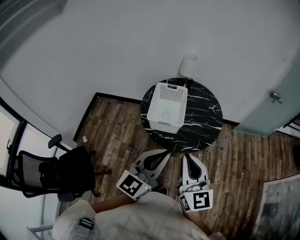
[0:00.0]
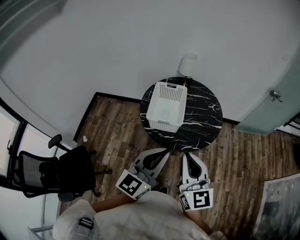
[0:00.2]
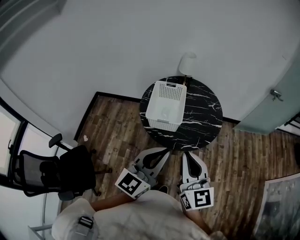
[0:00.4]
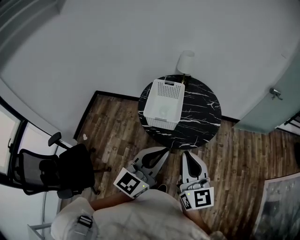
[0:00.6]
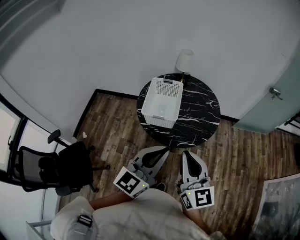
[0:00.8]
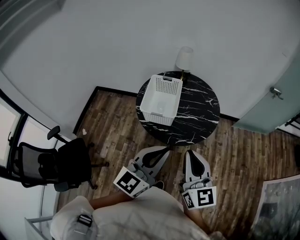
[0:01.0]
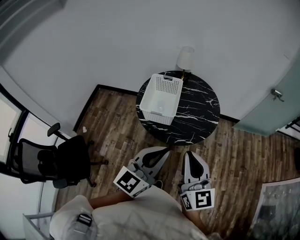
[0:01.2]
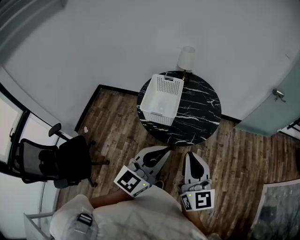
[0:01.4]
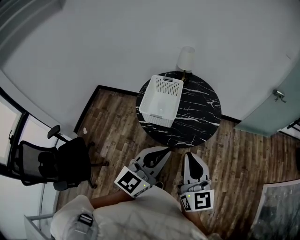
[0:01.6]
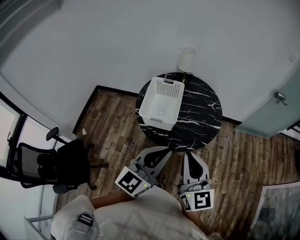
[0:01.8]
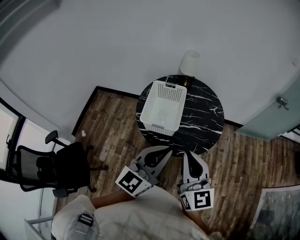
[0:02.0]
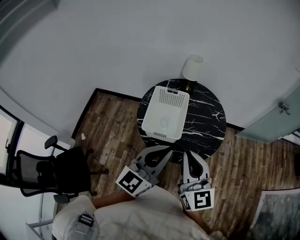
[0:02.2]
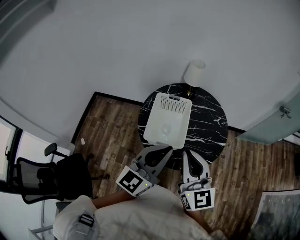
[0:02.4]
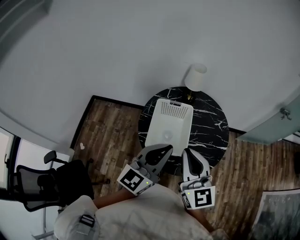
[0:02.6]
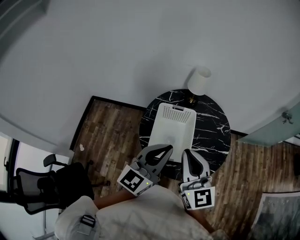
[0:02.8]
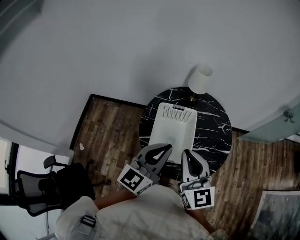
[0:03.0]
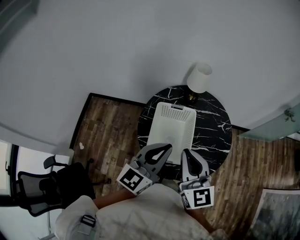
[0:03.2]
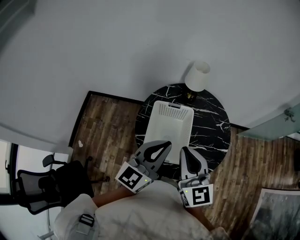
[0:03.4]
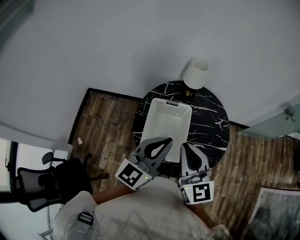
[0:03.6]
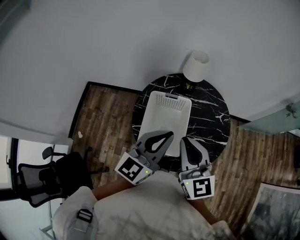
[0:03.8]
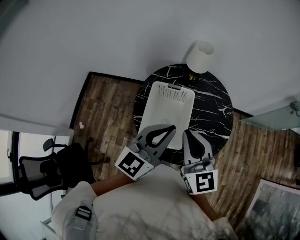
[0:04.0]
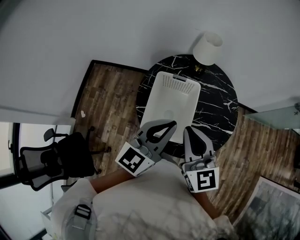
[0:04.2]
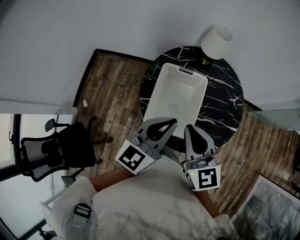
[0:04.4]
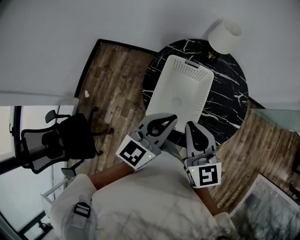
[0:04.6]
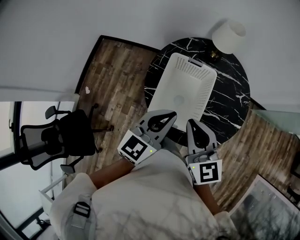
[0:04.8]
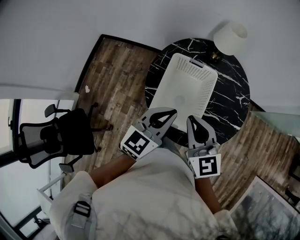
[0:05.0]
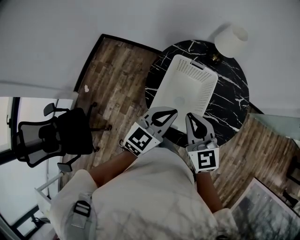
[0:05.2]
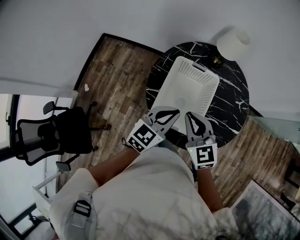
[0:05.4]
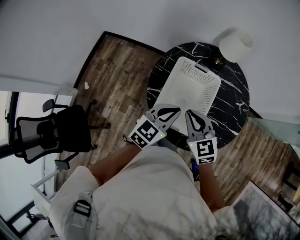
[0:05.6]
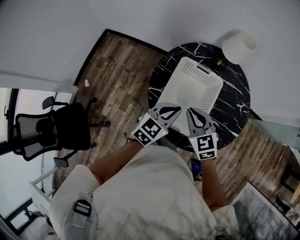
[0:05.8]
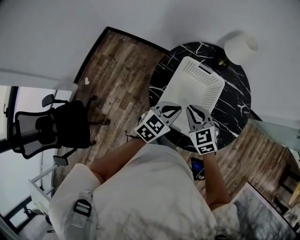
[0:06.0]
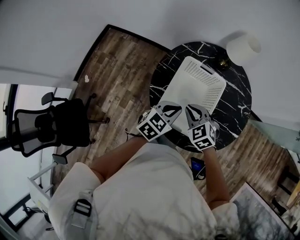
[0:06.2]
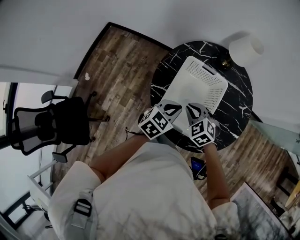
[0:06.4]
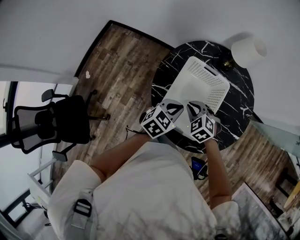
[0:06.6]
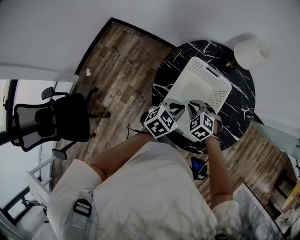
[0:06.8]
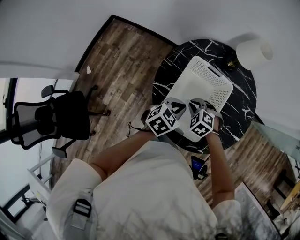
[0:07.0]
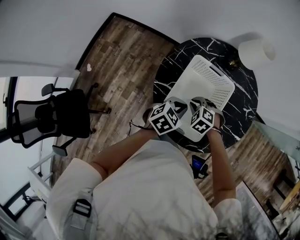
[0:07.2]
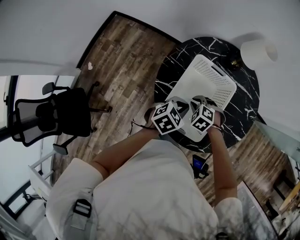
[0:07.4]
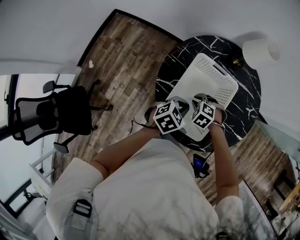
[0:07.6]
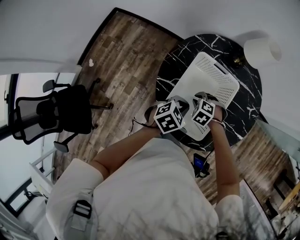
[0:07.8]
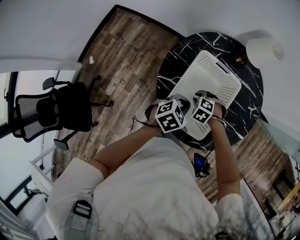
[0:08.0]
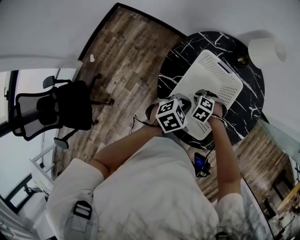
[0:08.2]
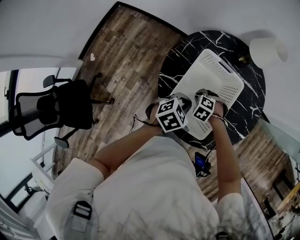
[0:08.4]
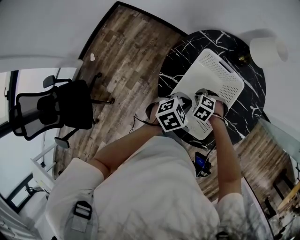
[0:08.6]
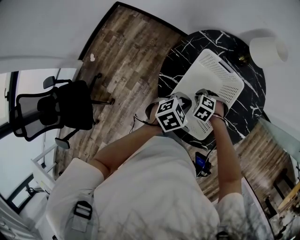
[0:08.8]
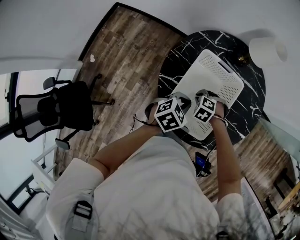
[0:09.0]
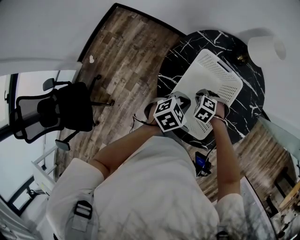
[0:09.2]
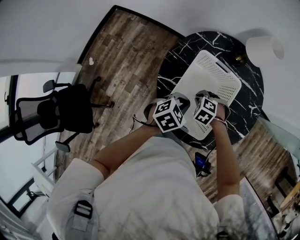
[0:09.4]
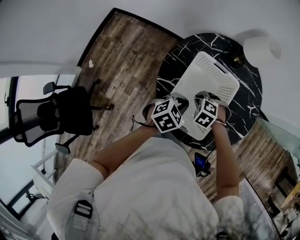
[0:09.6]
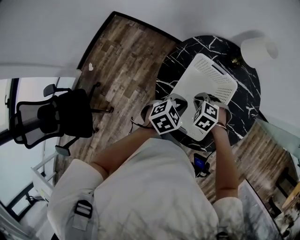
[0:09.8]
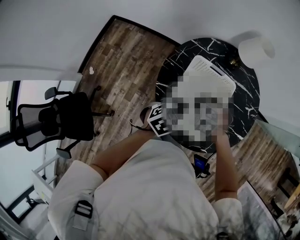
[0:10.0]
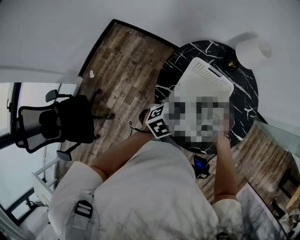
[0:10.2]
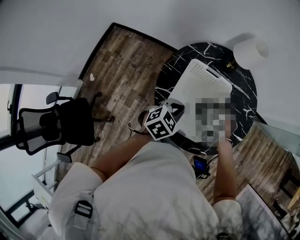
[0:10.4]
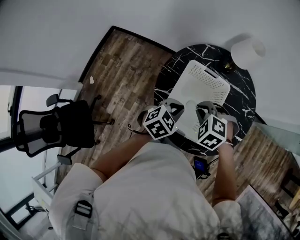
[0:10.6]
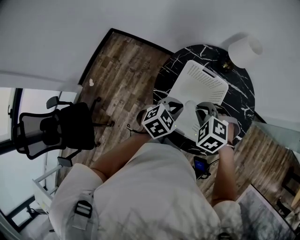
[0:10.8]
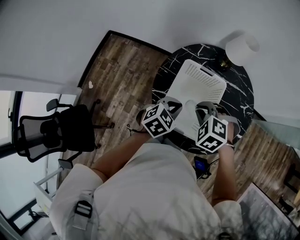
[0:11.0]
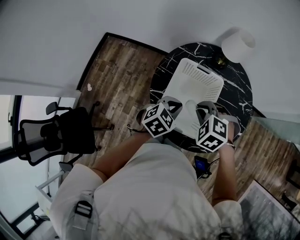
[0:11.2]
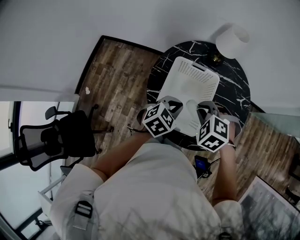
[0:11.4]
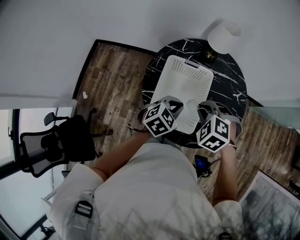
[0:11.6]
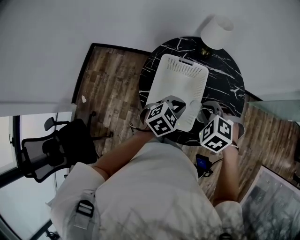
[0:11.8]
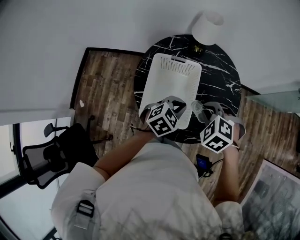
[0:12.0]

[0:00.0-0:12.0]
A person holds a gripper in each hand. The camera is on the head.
0:00.0 to 0:01.6: Both grippers travel together to the right, about 10 cm.
0:01.6 to 0:03.0: Both grippers travel together forward and to the left, approximately 35 cm.
0:03.0 to 0:04.4: The two grippers go roughly 5 cm downward.
0:04.4 to 0:06.0: The two grippers go roughly 20 cm downward. The right gripper rotates some 40 degrees. Meanwhile the left gripper rotates some 30 degrees.
0:06.0 to 0:07.6: The left gripper goes some 10 cm downward, and rotates approximately 20 degrees, while the right gripper shifts some 20 cm downward, and points its fingers approximately 40 degrees further downward.
0:07.6 to 0:09.0: The grippers move only a little.
0:09.0 to 0:10.4: The left gripper goes about 5 cm upward, while the right gripper moves upward, about 20 cm.
0:10.4 to 0:12.0: The left gripper is displaced to the right by about 10 cm. Meanwhile the right gripper is displaced to the right and upward by approximately 15 cm.

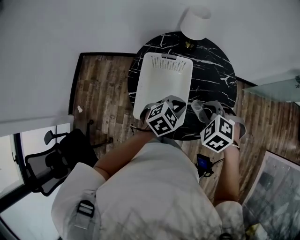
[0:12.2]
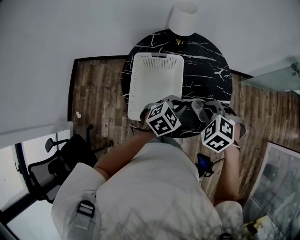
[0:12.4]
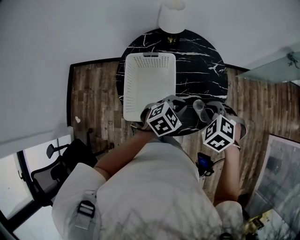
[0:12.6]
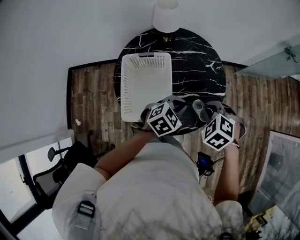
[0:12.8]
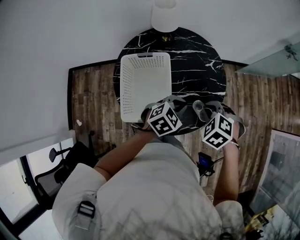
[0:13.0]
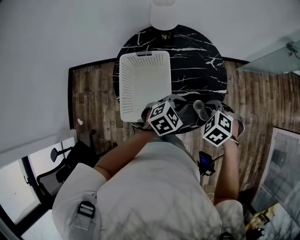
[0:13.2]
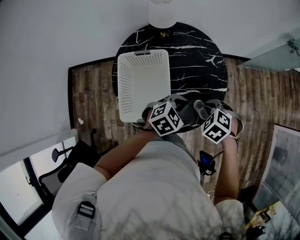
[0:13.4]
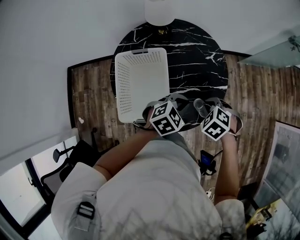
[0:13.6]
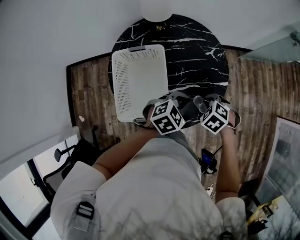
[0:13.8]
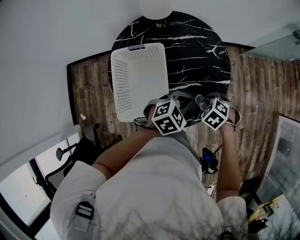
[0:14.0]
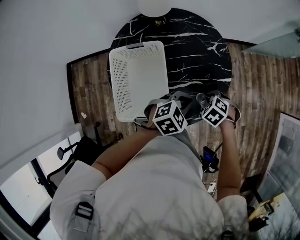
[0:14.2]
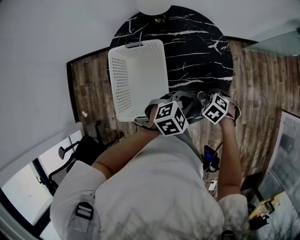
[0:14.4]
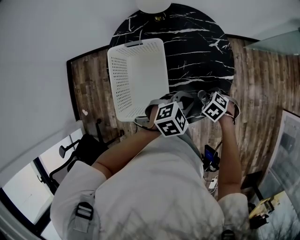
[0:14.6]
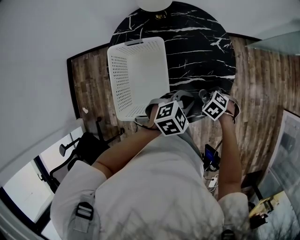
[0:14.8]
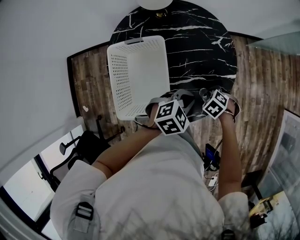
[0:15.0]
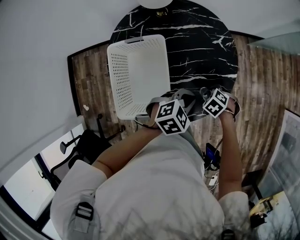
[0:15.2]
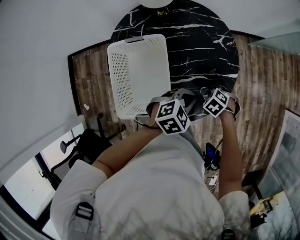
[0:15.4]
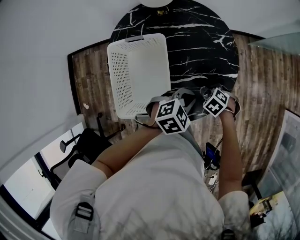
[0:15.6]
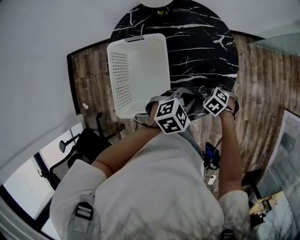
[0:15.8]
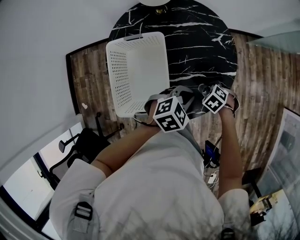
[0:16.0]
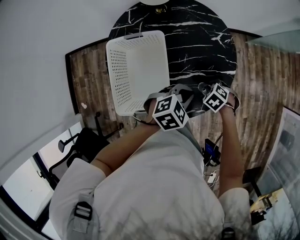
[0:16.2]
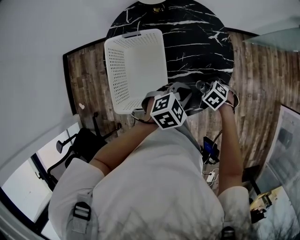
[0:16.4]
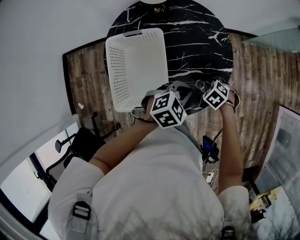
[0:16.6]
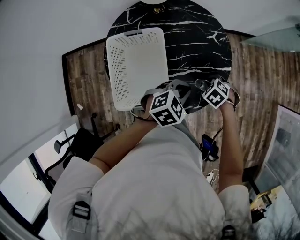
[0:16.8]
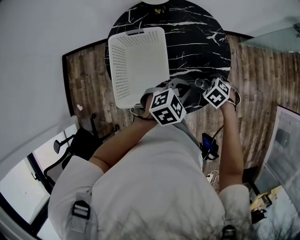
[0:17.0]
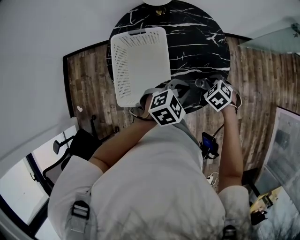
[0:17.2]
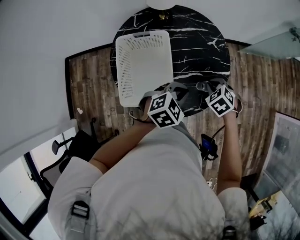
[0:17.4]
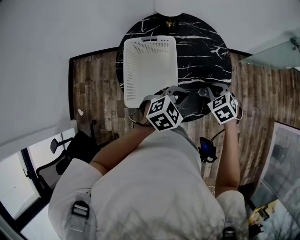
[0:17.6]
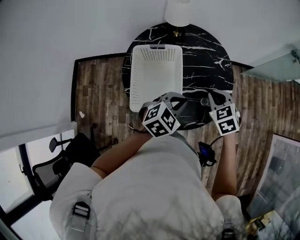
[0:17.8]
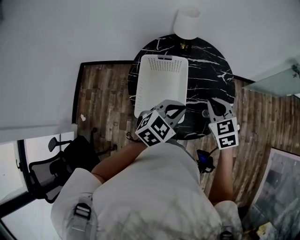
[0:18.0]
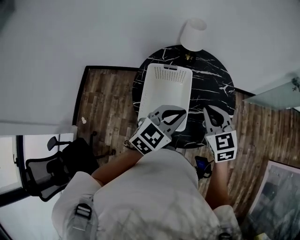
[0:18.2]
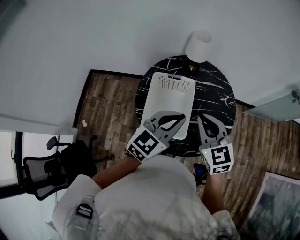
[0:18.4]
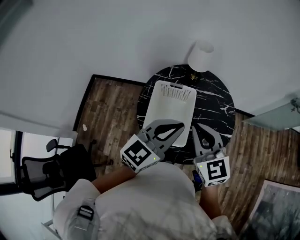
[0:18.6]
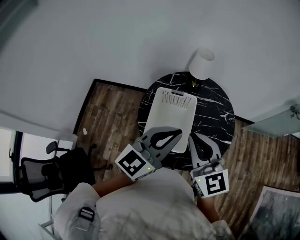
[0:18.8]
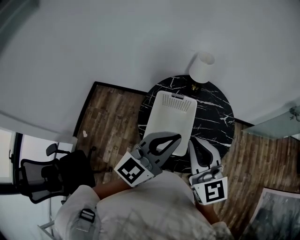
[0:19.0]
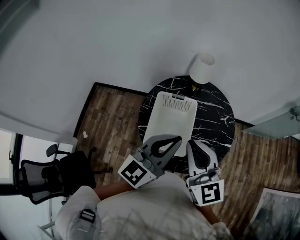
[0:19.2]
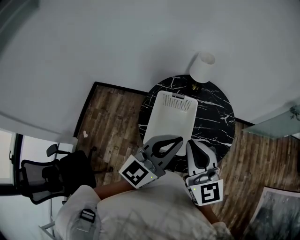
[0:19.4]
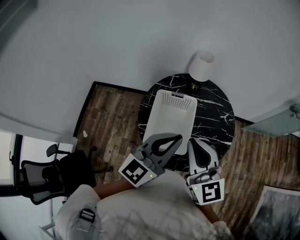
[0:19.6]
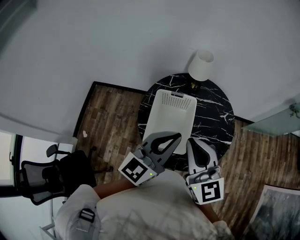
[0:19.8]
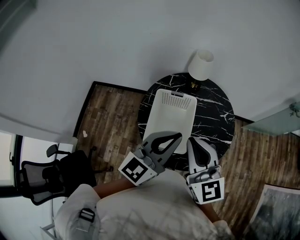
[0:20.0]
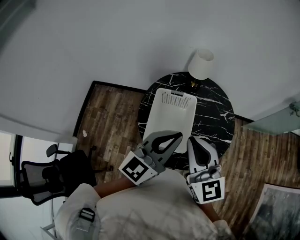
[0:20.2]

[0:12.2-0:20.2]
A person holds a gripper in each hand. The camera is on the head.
0:12.2 to 0:13.8: The left gripper ends up roughly 10 cm from where it was. The right gripper is displaced downward by some 15 cm, and turns by approximately 20 degrees.
0:13.8 to 0:15.4: The right gripper travels downward by some 15 cm.
0:15.4 to 0:17.0: The right gripper heads upward, covering some 5 cm.
0:17.0 to 0:18.6: The grippers both shift upward by about 30 cm. The right gripper points its fingers approximately 70 degrees further upward, while the left gripper angles its fingers upward, by about 40 degrees.
0:18.6 to 0:20.2: The right gripper moves roughly 5 cm.

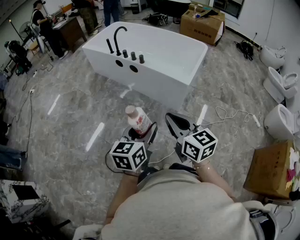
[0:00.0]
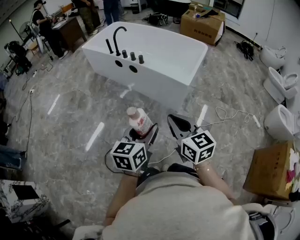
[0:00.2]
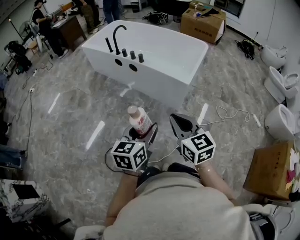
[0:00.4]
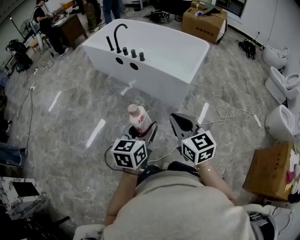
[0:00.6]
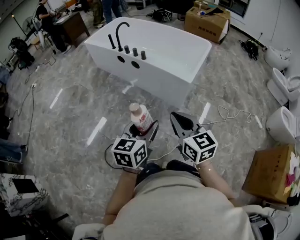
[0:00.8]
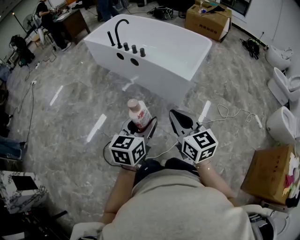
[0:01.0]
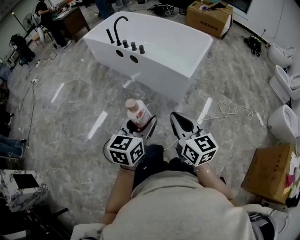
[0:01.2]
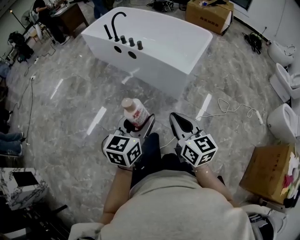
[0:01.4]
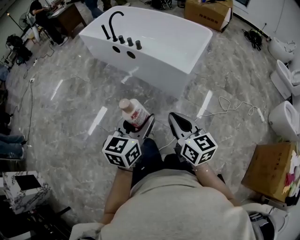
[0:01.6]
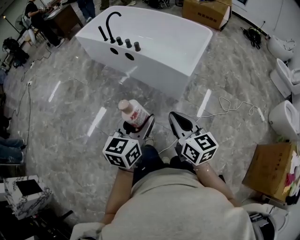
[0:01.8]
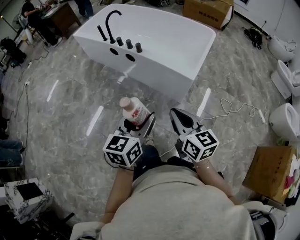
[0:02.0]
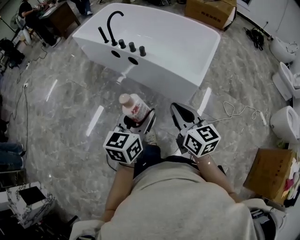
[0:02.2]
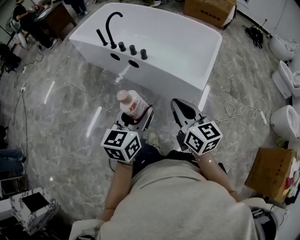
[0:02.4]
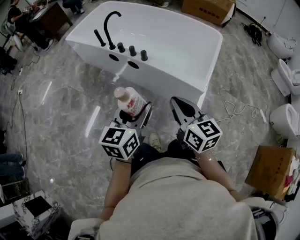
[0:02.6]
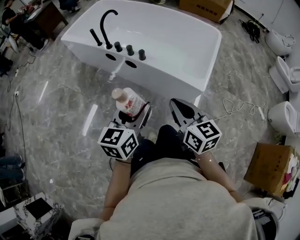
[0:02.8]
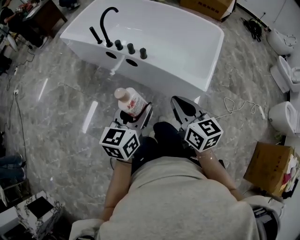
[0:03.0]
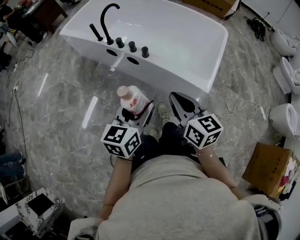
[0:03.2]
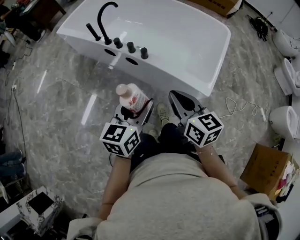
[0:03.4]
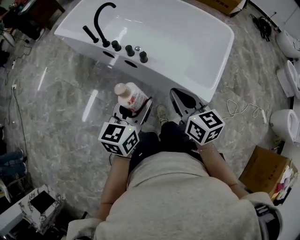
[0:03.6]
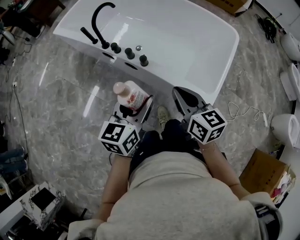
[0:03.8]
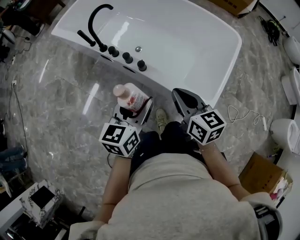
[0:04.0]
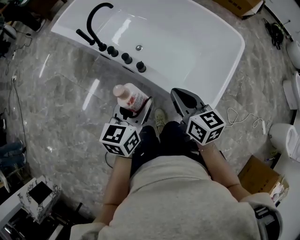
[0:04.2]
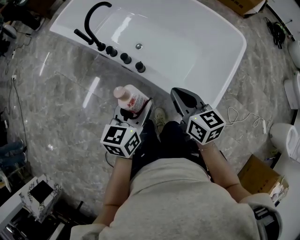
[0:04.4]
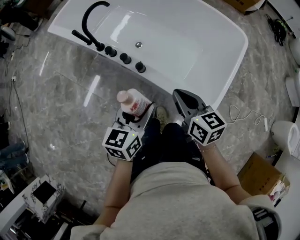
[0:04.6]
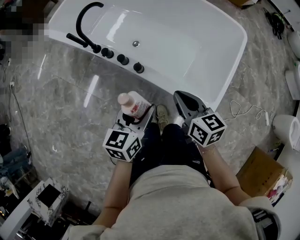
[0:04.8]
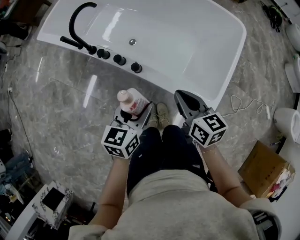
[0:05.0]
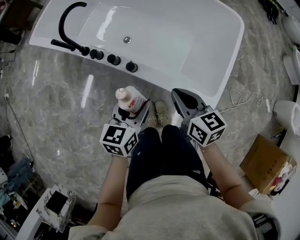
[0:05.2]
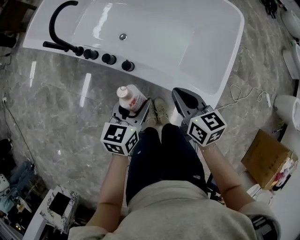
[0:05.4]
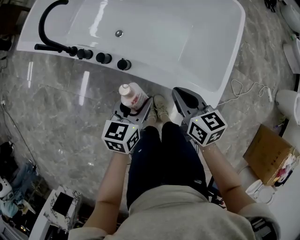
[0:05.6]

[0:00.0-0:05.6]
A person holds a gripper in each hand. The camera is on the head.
0:00.0 to 0:01.4: Both grippers move to the right, approximately 5 cm.
0:01.4 to 0:02.8: Both grippers travel together forward, some 35 cm.
0:02.8 to 0:04.2: Both grippers travel together forward, roughly 30 cm.
0:04.2 to 0:05.6: Both grippers move downward, some 15 cm. The left gripper rotates about 20 degrees.
